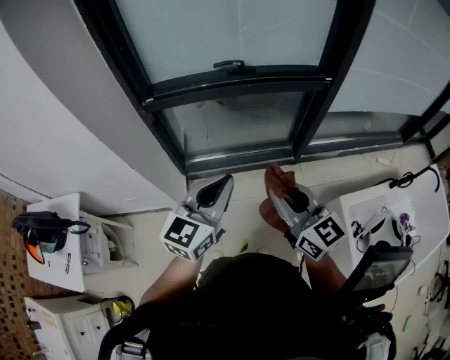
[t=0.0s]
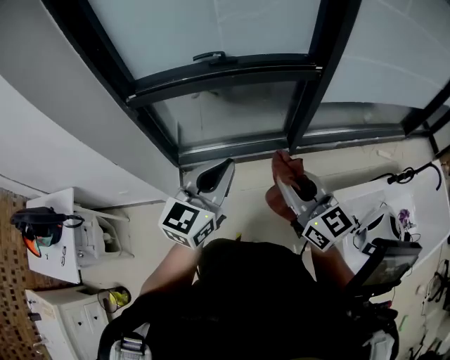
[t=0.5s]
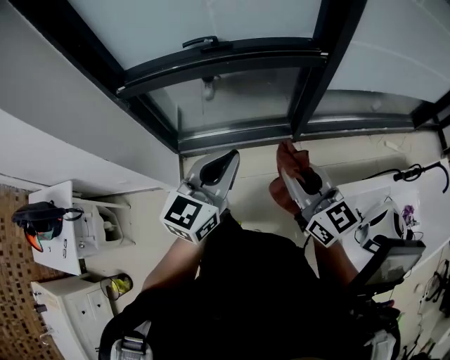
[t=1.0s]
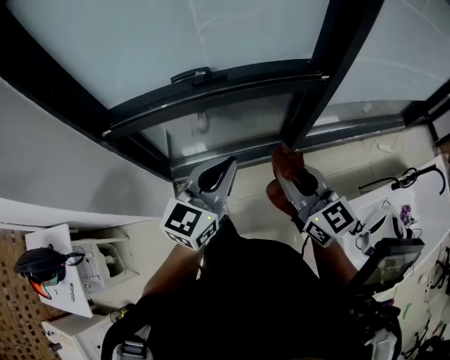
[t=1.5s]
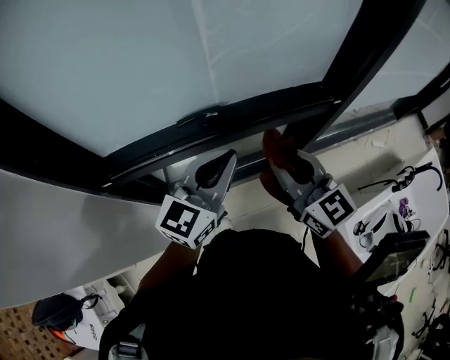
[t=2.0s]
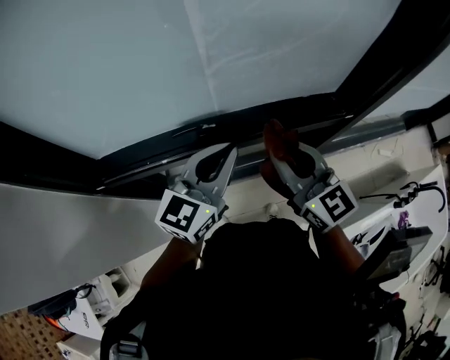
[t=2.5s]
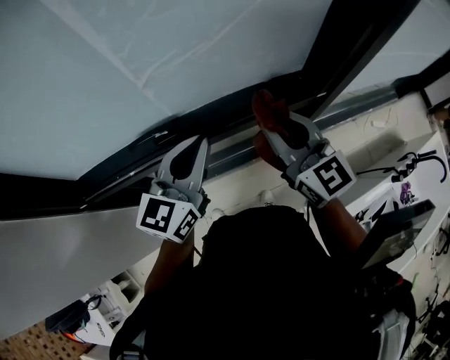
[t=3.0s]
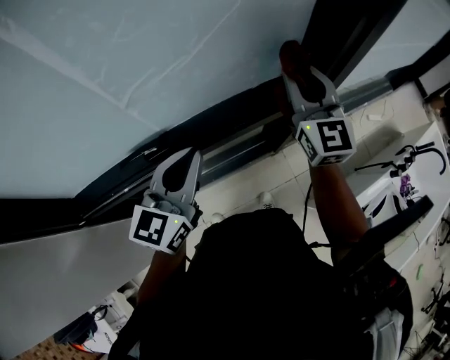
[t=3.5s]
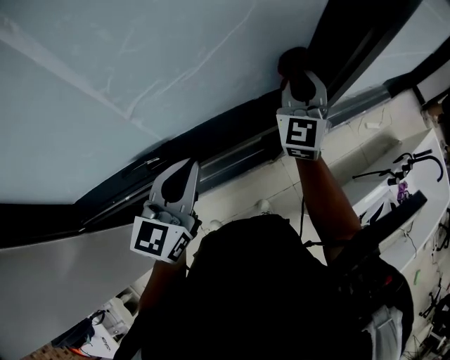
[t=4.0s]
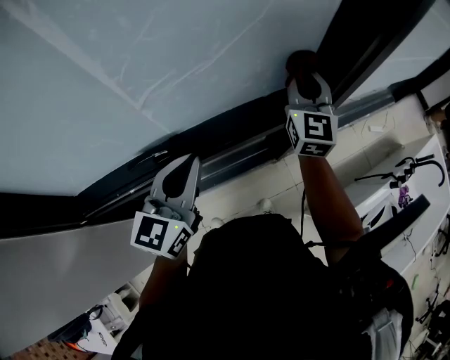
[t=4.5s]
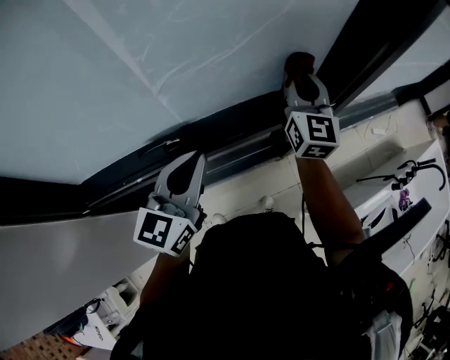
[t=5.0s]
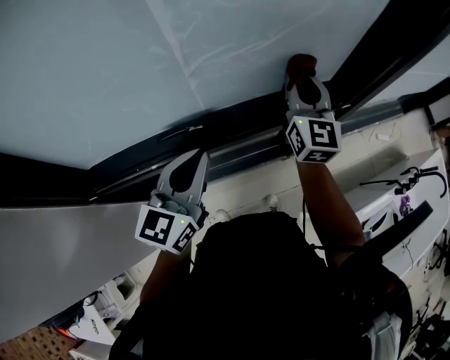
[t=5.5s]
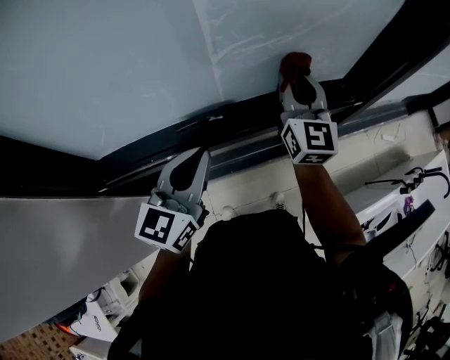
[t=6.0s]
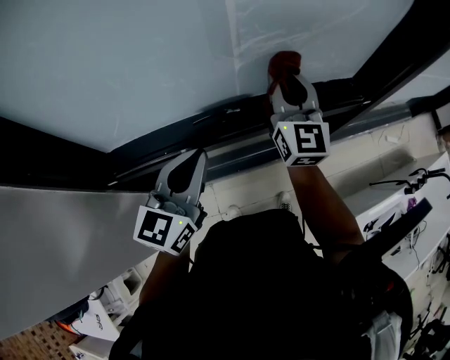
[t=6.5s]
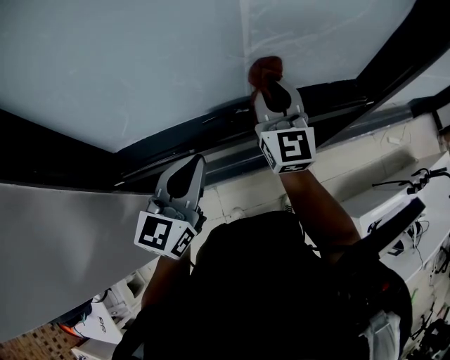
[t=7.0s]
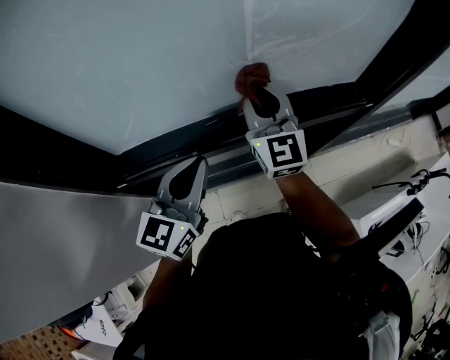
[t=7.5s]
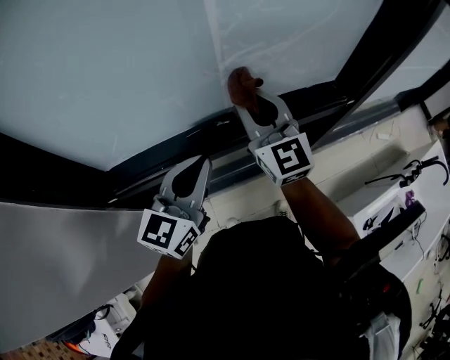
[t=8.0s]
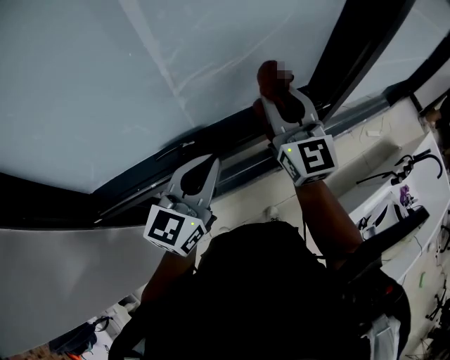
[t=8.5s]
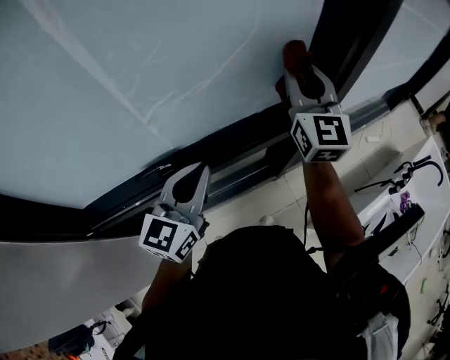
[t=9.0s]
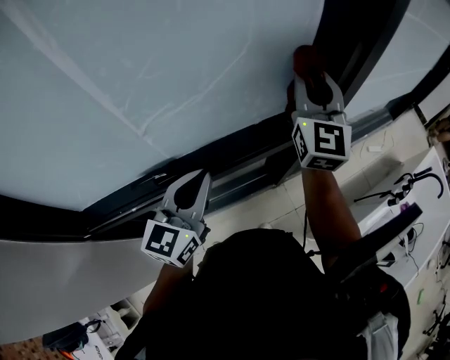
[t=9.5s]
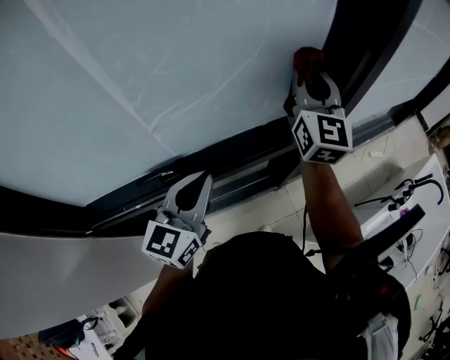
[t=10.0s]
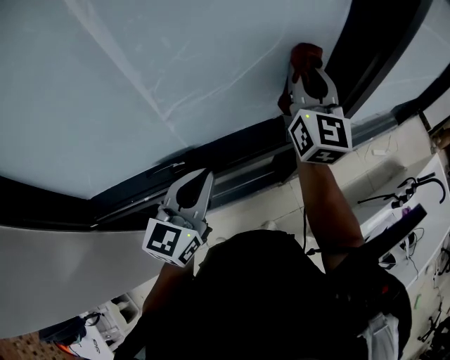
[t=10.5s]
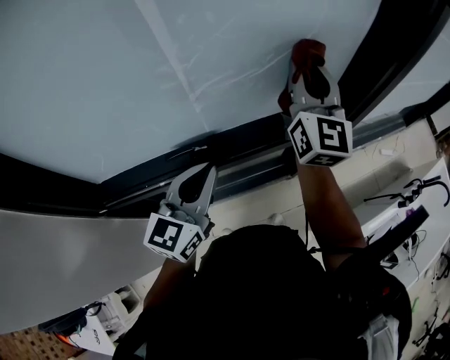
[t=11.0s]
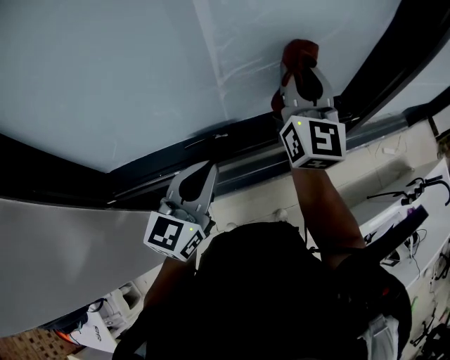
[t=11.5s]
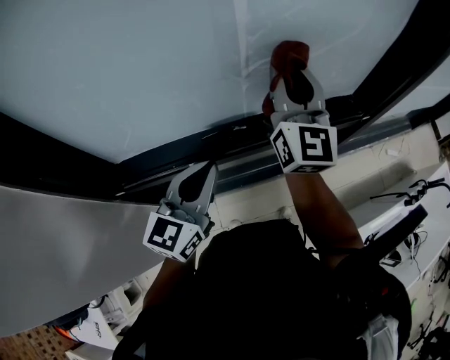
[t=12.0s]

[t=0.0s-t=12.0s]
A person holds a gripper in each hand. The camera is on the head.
t=0.0s to t=2.0s: The grippers both shift forward by about 35 cm.
t=2.0s to t=4.0s: The left gripper travels forward and to the right by about 10 cm; the right gripper travels forward and to the right by about 35 cm, and turns by about 50 degrees.
t=4.0s to t=6.0s: Both grippers move to the left and backward, some 15 cm. The right gripper changes its angle by approximately 30 degrees.
t=6.0s to t=8.0s: The right gripper goes approximately 15 cm to the left and backward.
t=8.0s to t=10.0s: The left gripper heads to the right and forward, covering some 15 cm; the right gripper is displaced to the right and forward by about 30 cm, and turns by approximately 30 degrees.
t=10.0s to t=12.0s: Both grippers travel together to the left and backward, approximately 20 cm.

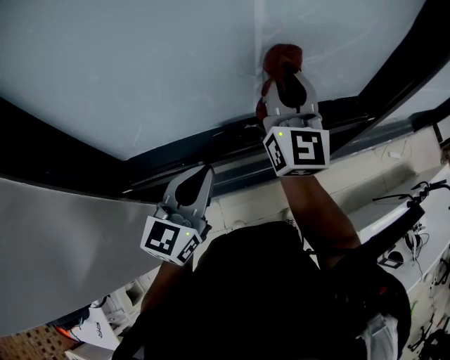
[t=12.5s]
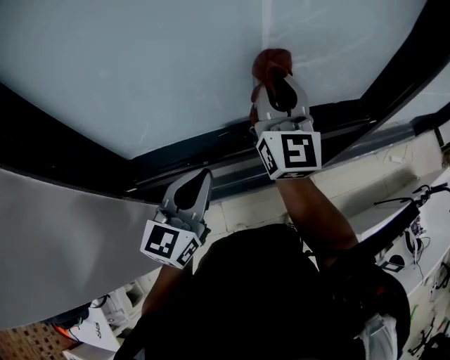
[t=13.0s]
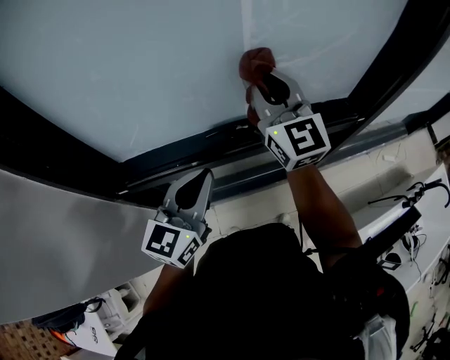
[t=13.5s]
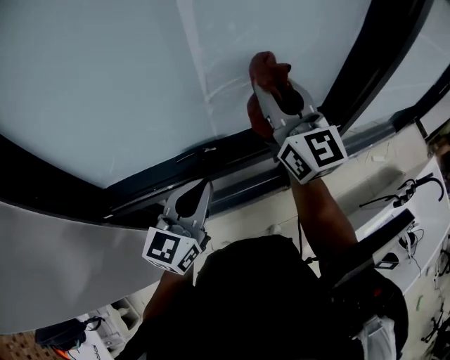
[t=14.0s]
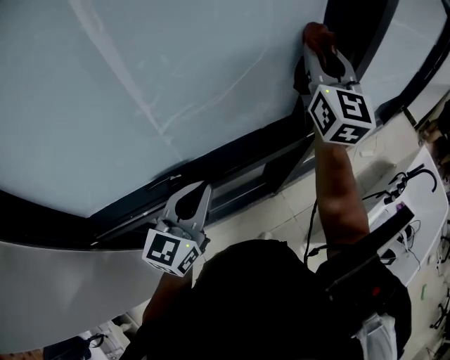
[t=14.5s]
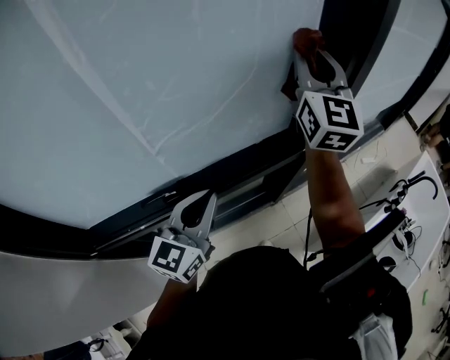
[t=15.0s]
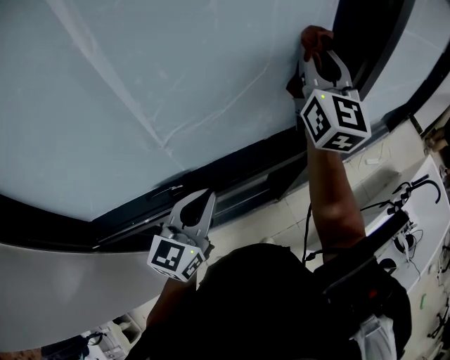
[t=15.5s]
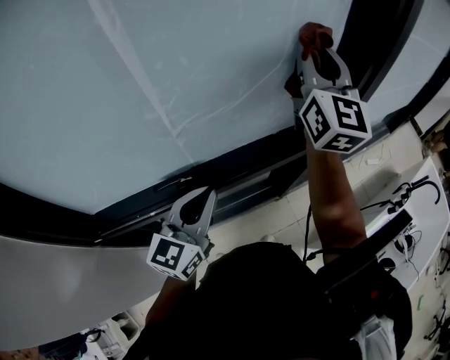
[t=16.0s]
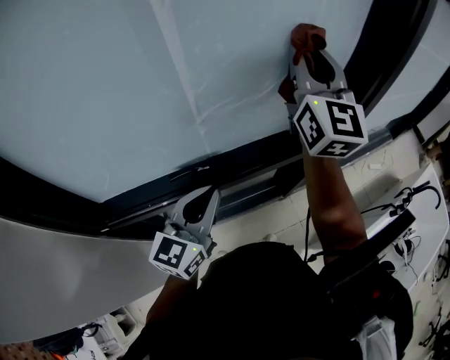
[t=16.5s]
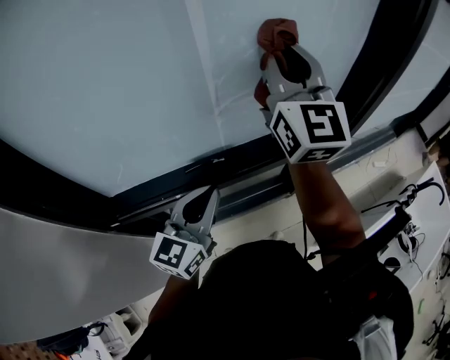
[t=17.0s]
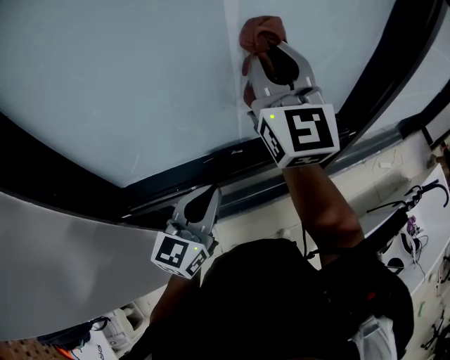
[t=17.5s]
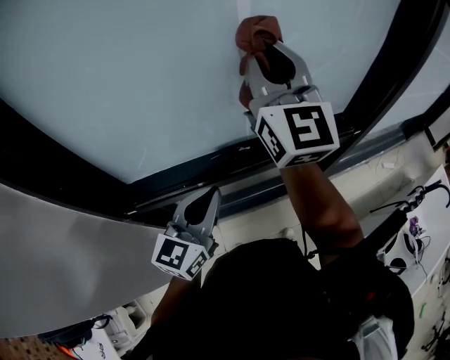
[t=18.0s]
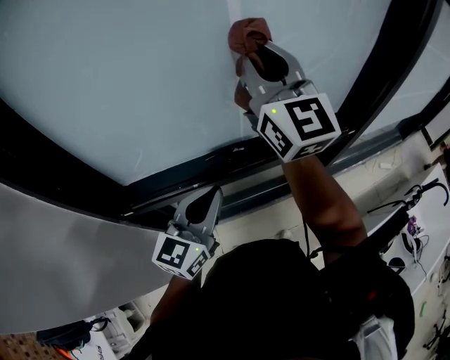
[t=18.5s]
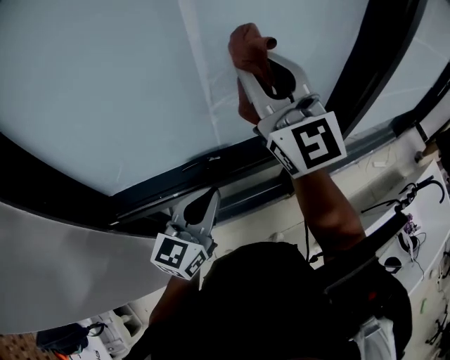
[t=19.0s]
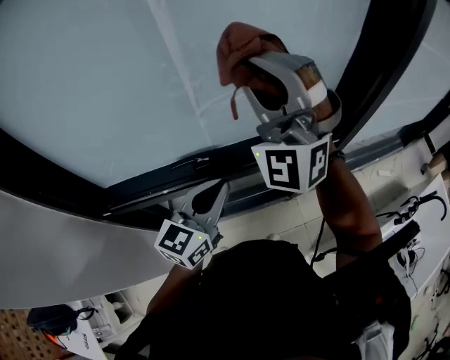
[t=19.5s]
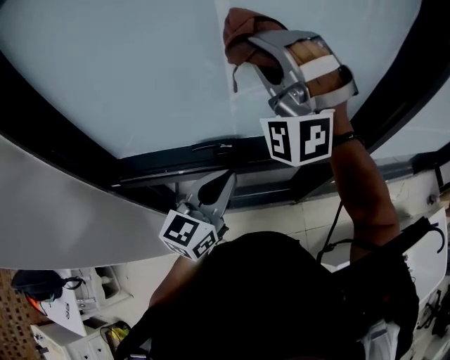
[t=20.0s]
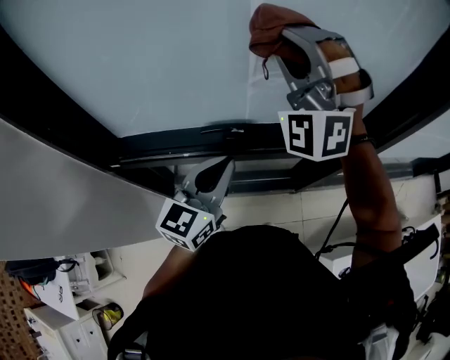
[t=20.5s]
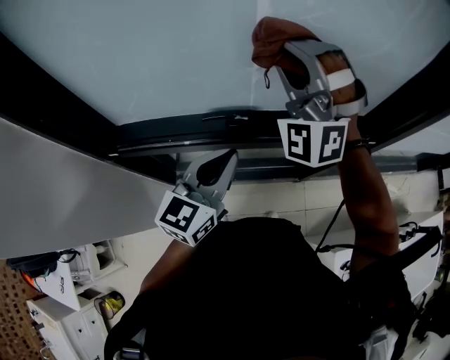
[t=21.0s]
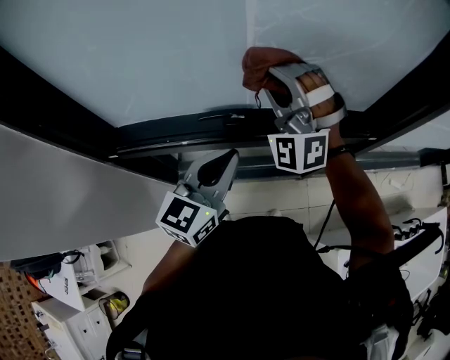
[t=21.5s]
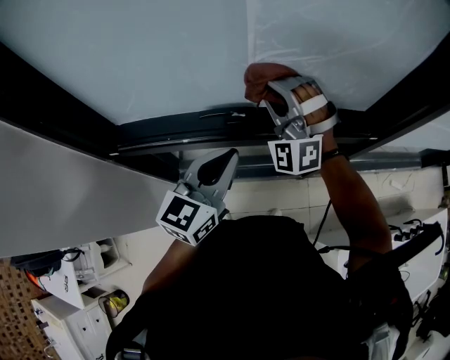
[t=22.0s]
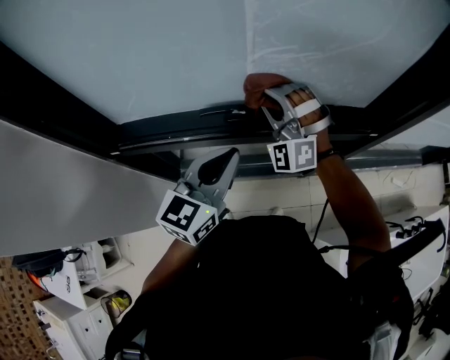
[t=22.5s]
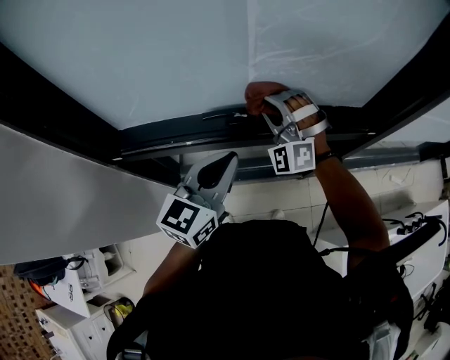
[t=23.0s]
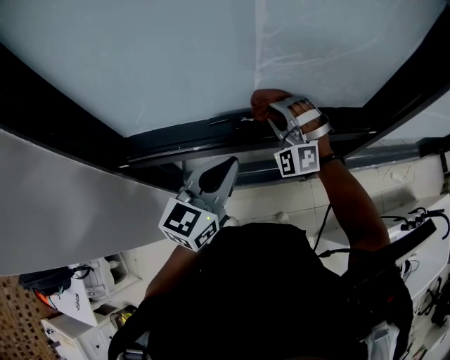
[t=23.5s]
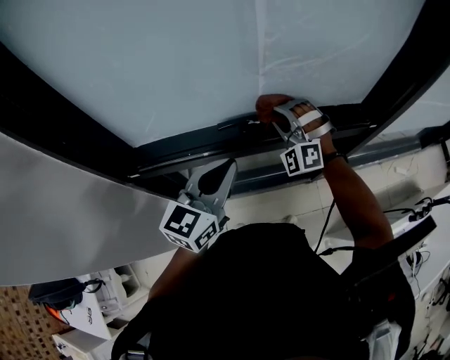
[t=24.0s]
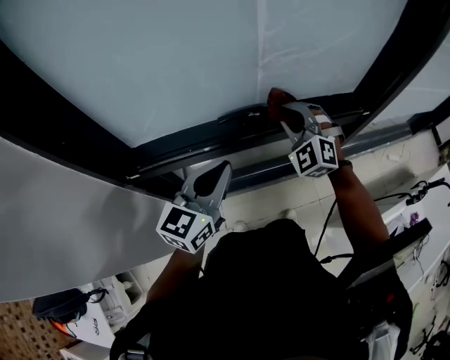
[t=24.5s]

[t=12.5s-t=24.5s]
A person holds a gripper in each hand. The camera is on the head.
t=12.5s to t=14.5s: The left gripper is displaced to the right by approximately 15 cm; the right gripper shifts approximately 30 cm to the right.
t=14.5s to t=16.5s: The left gripper moves about 5 cm, while the right gripper shifts roughly 10 cm to the left.
t=16.5s to t=18.5s: The left gripper shifts some 10 cm to the left and backward; the right gripper travels to the left and backward by some 20 cm, and turns by about 20 degrees.
t=18.5s to t=20.5s: The left gripper heads to the right, covering about 5 cm. The right gripper goes to the right and returns, roughly 10 cm each way, and twists approximately 70 degrees counterclockwise, seen from behind.
t=20.5s to t=22.5s: The right gripper goes some 20 cm downward.
t=22.5s to t=24.5s: The left gripper is displaced to the left by about 10 cm; the right gripper moves about 5 cm, and swivels about 30 degrees.

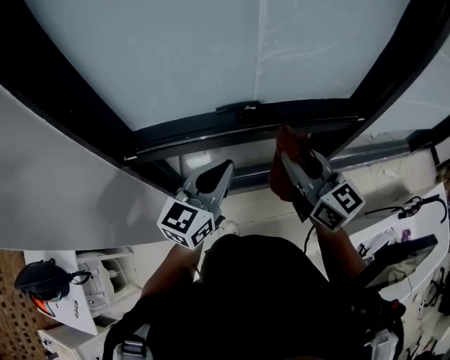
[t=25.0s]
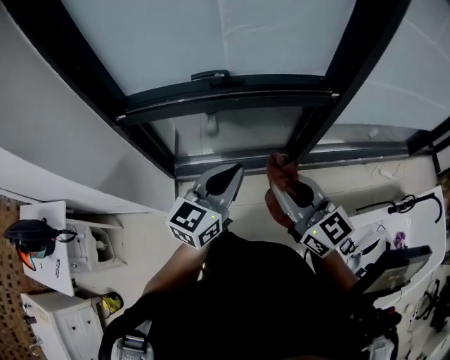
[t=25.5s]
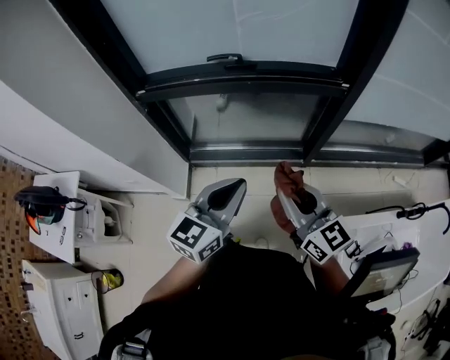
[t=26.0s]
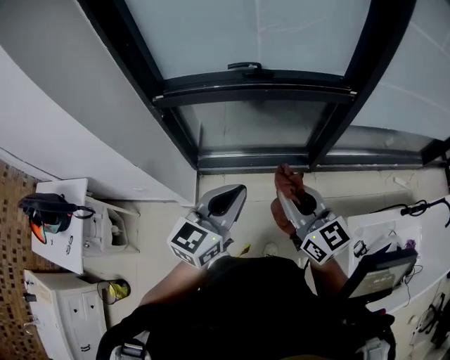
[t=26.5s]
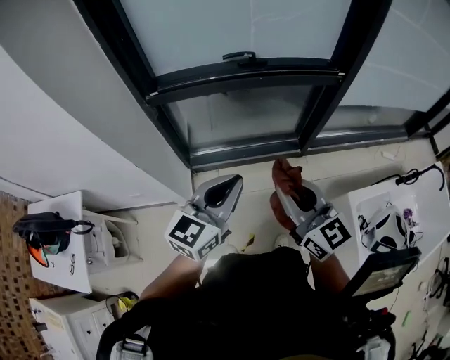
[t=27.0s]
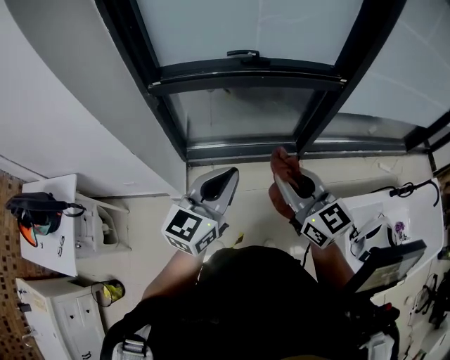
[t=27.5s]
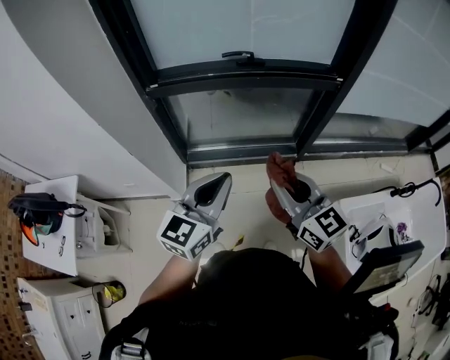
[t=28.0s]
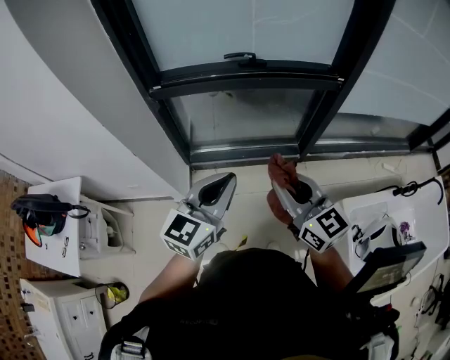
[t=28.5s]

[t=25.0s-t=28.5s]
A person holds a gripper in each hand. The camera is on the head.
t=25.0s to t=27.0s: The grippers both shift backward by about 35 cm.
t=27.0s to t=28.5s: There are only small adjustments of the grippers.
